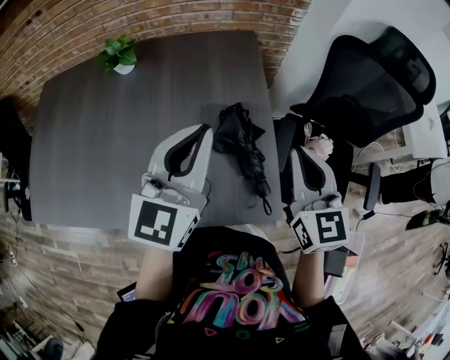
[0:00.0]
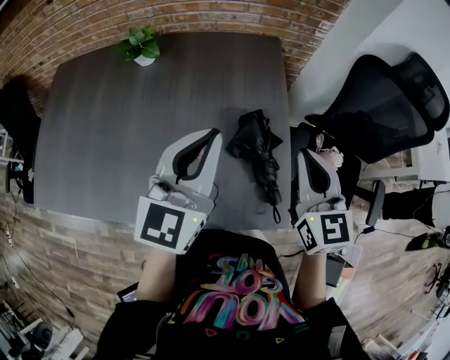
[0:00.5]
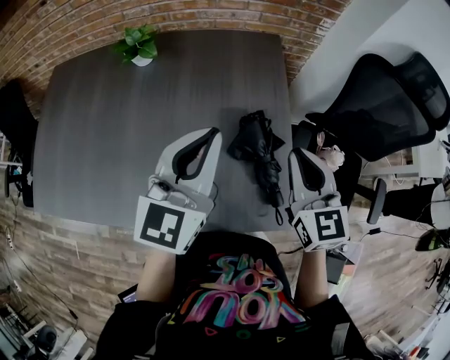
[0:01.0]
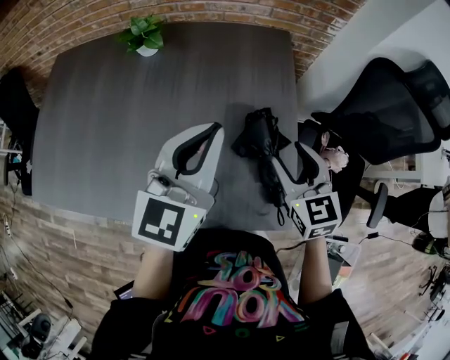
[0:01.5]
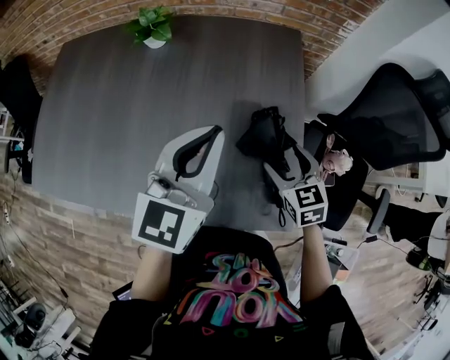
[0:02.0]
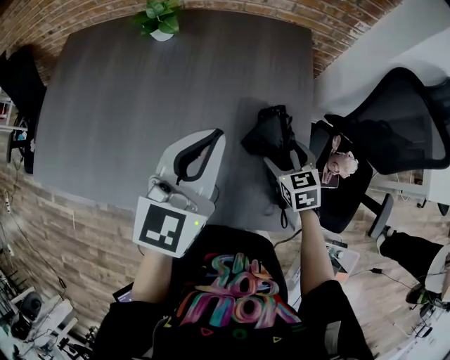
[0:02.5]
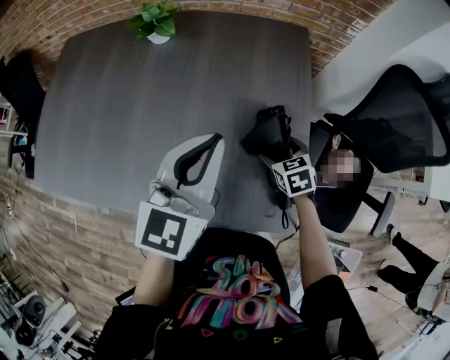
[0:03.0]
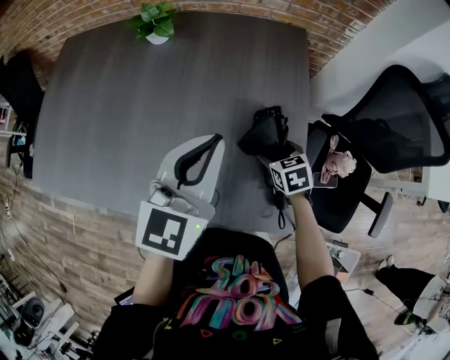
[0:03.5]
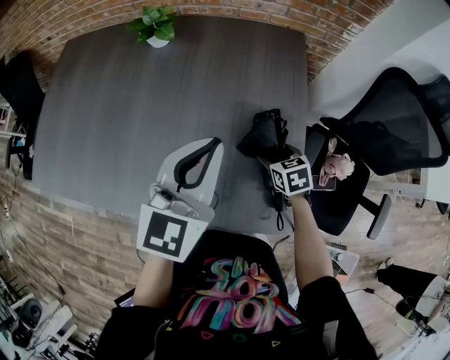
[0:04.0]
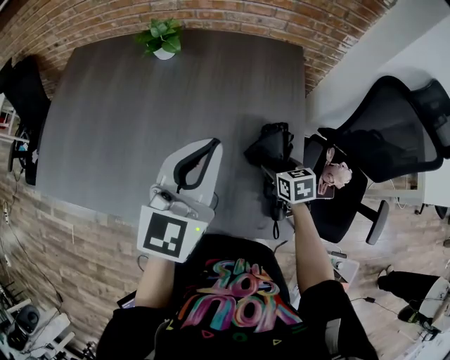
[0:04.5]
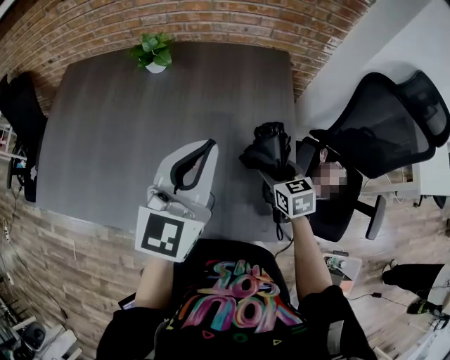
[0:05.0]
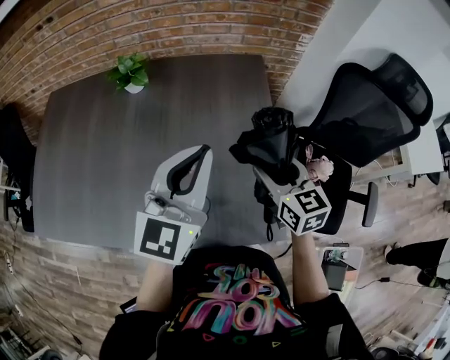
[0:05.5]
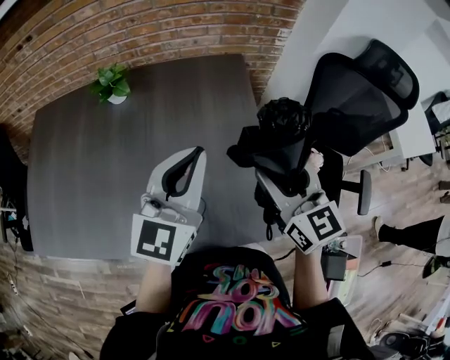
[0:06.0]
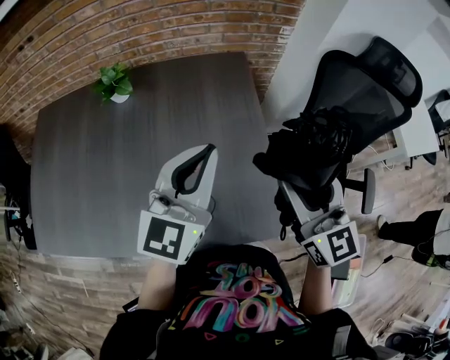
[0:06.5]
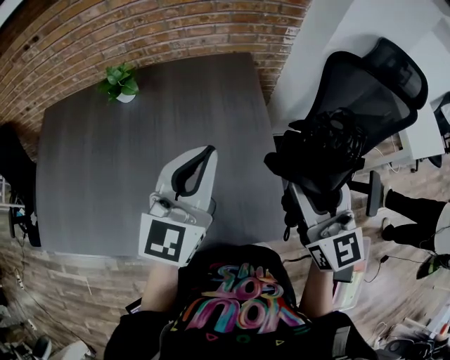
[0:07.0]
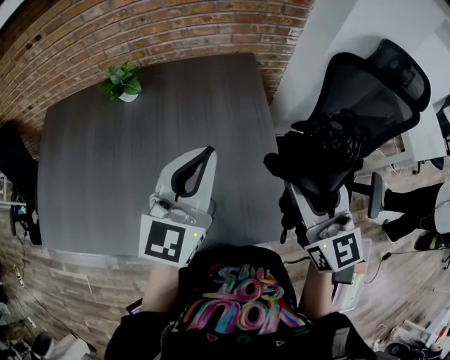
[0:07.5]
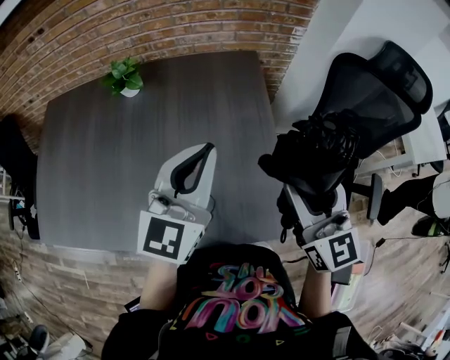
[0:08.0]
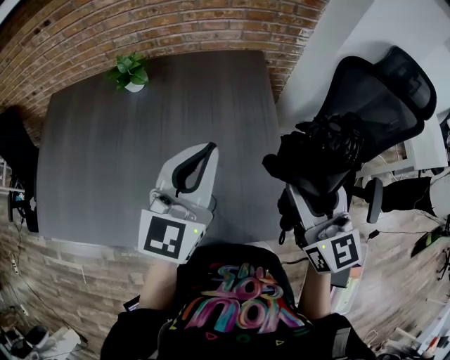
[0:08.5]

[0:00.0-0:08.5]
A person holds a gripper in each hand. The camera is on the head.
0:00.0 to 0:02.0: The right gripper goes about 20 cm downward, turns by approximately 30 degrees, and opens, while the left gripper travels to the left by roughly 5 cm.
0:02.0 to 0:04.0: The right gripper goes some 10 cm downward, and rotates some 20 degrees.
0:04.0 to 0:06.5: The right gripper heads upward, covering about 35 cm, and points its fingers approximately 50 degrees further upward, while the left gripper shifts approximately 10 cm upward and to the right.
0:06.5 to 0:08.5: The grippers make only small movements.

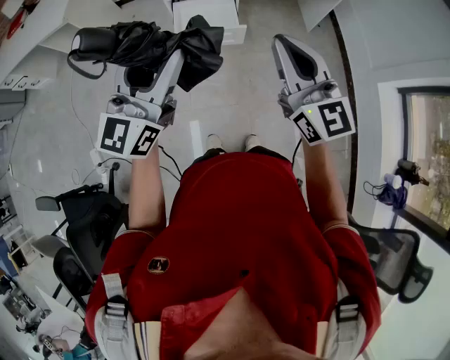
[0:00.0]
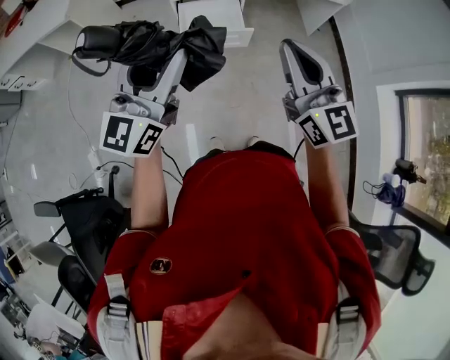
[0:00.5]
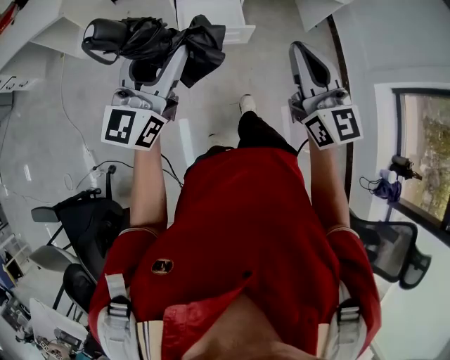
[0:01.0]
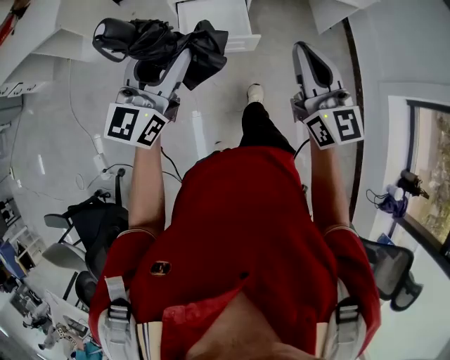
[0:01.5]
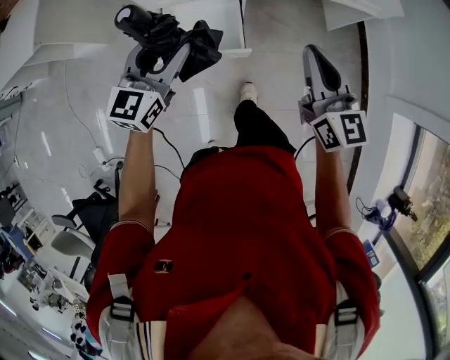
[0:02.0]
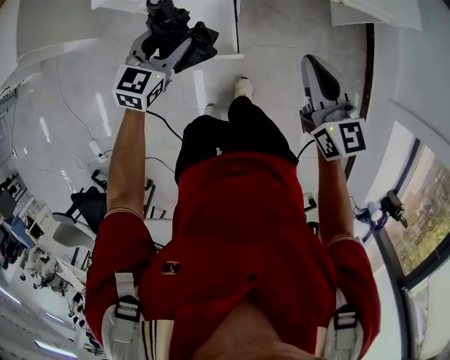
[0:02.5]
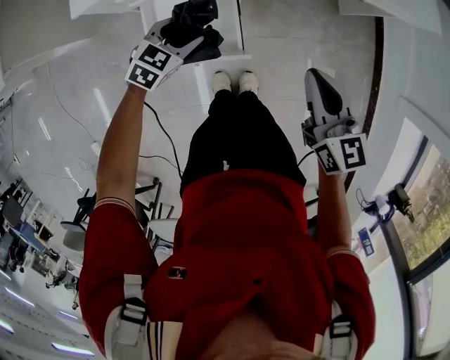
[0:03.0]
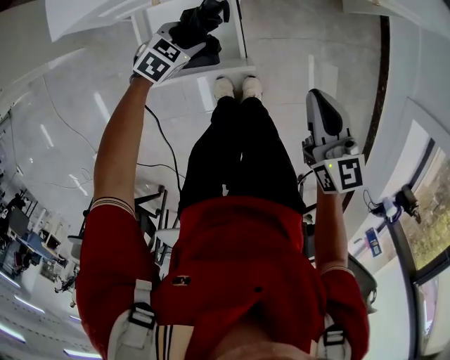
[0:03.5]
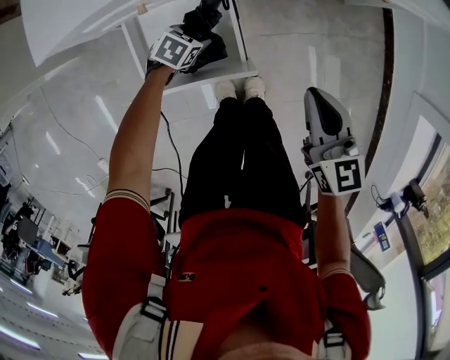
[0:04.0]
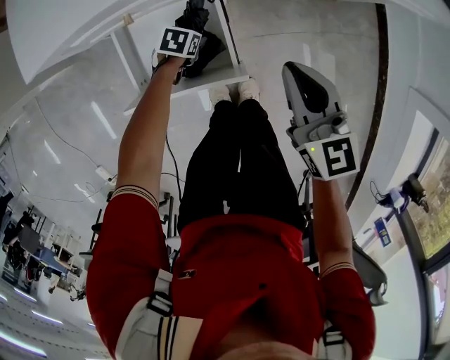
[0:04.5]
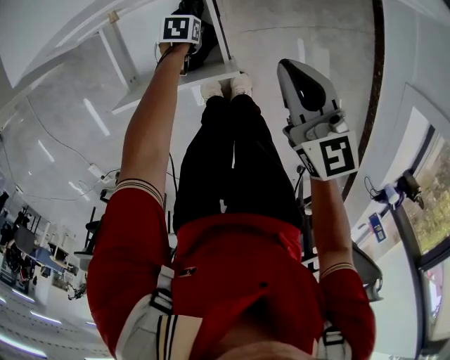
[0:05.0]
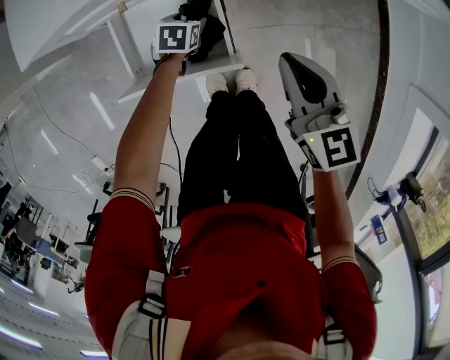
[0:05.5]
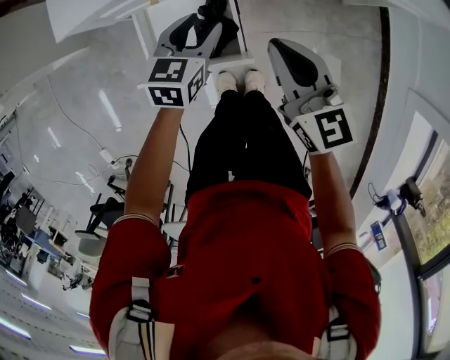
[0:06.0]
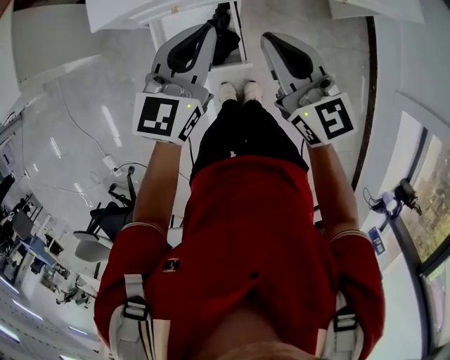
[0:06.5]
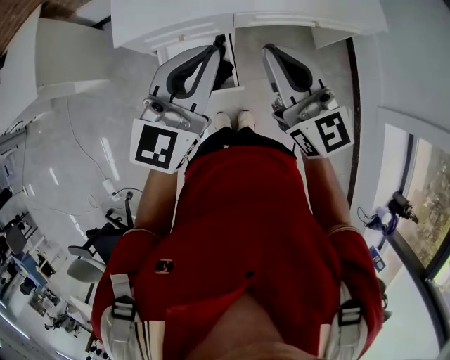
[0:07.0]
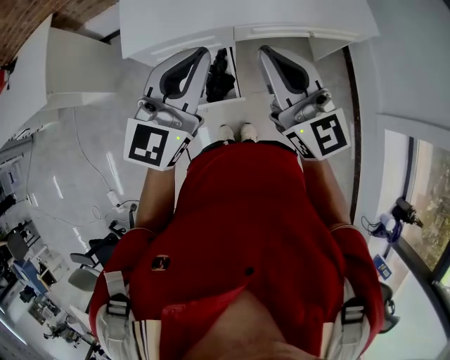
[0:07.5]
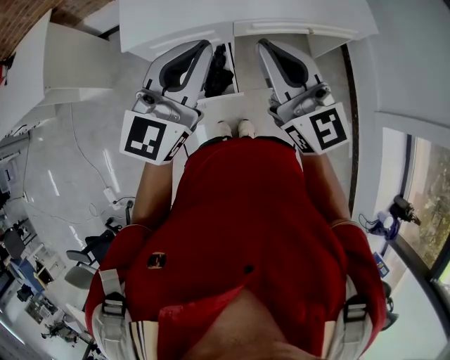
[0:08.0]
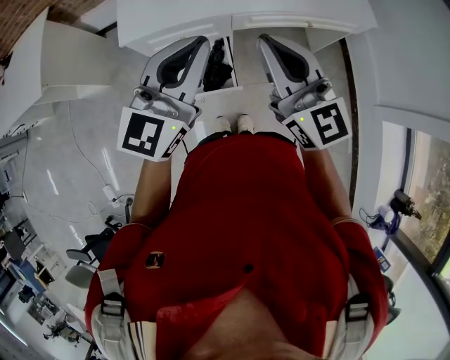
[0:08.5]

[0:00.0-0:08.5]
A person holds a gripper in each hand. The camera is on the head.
0:00.0 to 0:02.0: Both grippers move forward and downward, roughly 40 cm. The left gripper changes its angle by some 20 degrees.
0:02.0 to 0:04.0: The left gripper heads downward, covering roughly 50 cm, and points its fingers some 50 degrees further downward. The right gripper heads downward, covering approximately 25 cm, and changes its angle by roughly 20 degrees.
0:04.0 to 0:06.5: The left gripper travels upward by some 50 cm, angles its fingers upward, by approximately 50 degrees, and closes. The right gripper moves upward, some 20 cm, and turns by about 20 degrees.
0:06.5 to 0:08.5: The left gripper shifts approximately 20 cm upward and backward, and turns by about 20 degrees; the right gripper is displaced upward by roughly 20 cm.

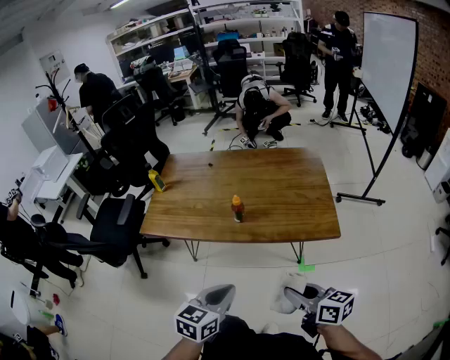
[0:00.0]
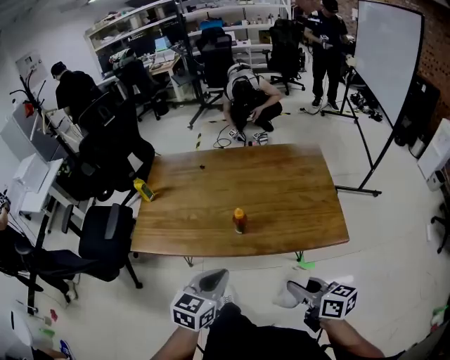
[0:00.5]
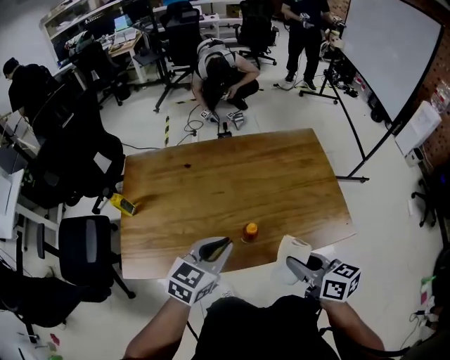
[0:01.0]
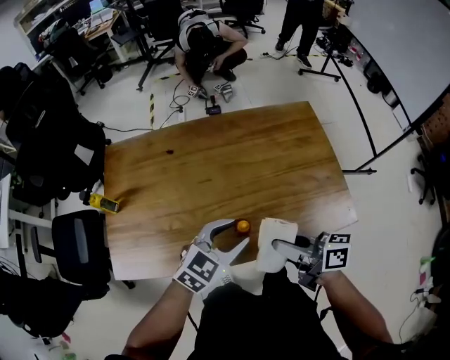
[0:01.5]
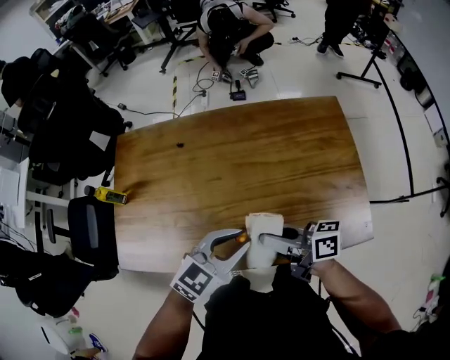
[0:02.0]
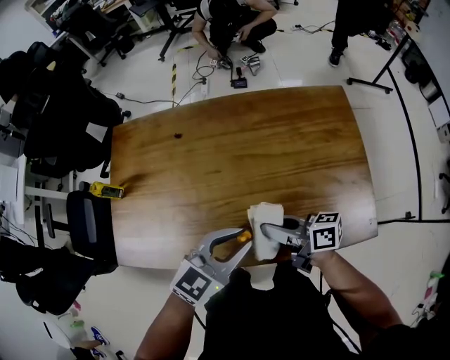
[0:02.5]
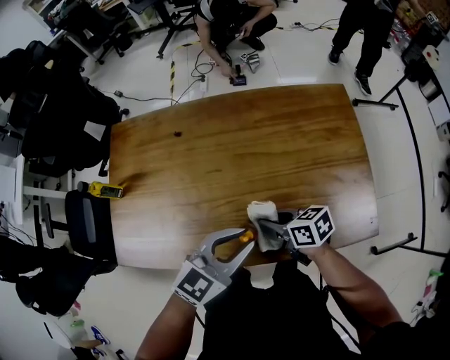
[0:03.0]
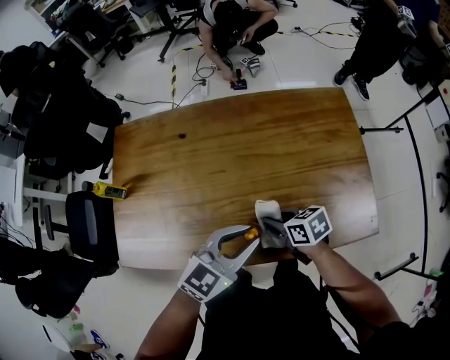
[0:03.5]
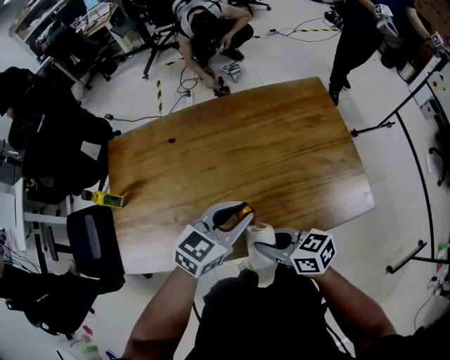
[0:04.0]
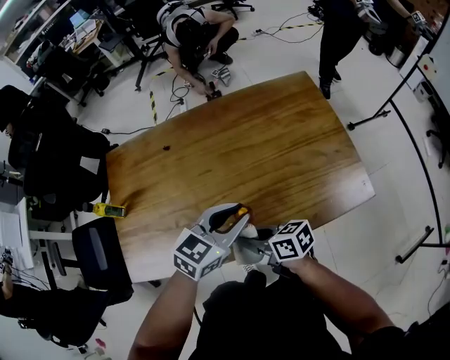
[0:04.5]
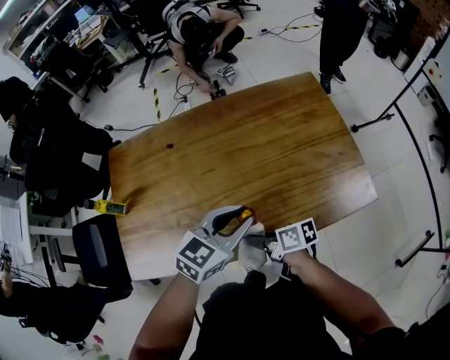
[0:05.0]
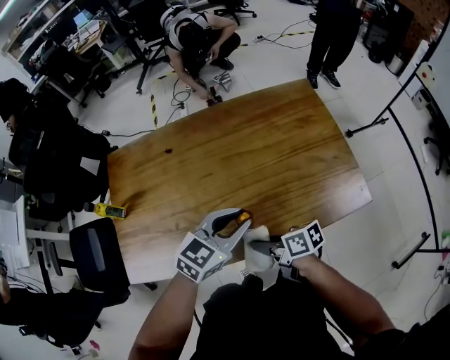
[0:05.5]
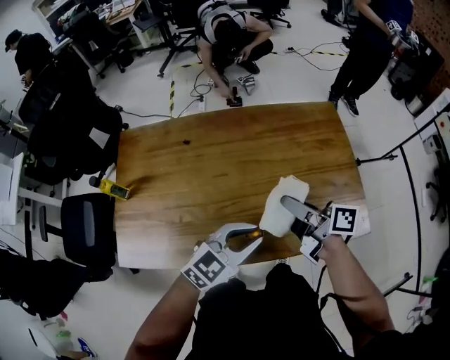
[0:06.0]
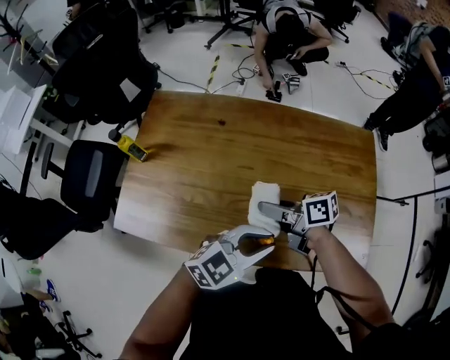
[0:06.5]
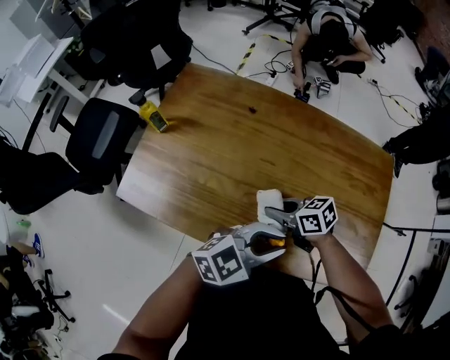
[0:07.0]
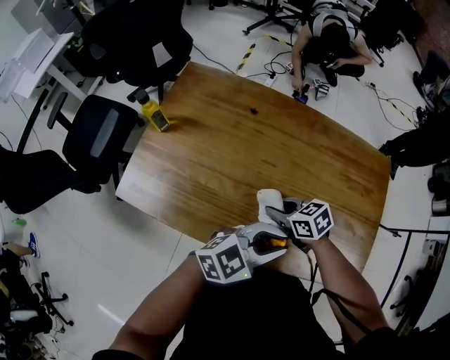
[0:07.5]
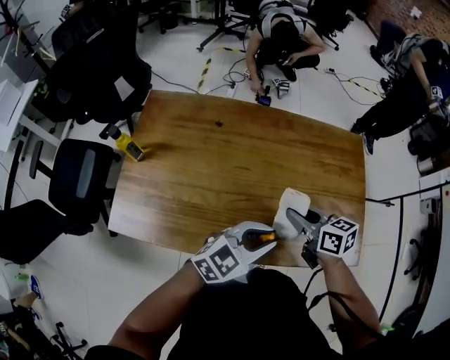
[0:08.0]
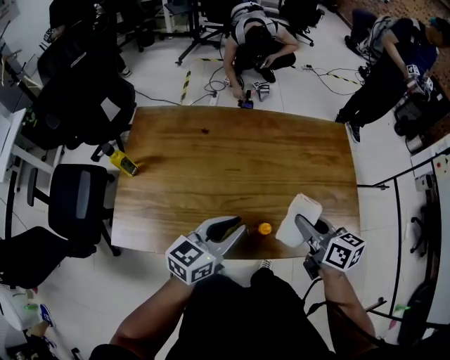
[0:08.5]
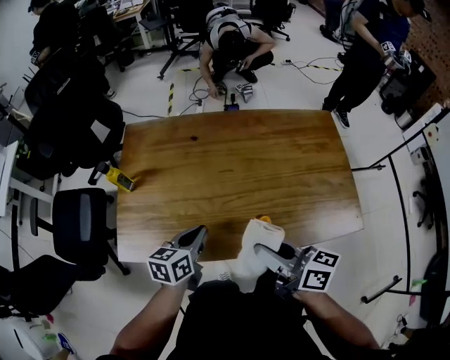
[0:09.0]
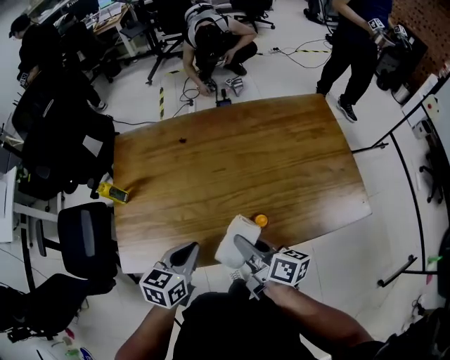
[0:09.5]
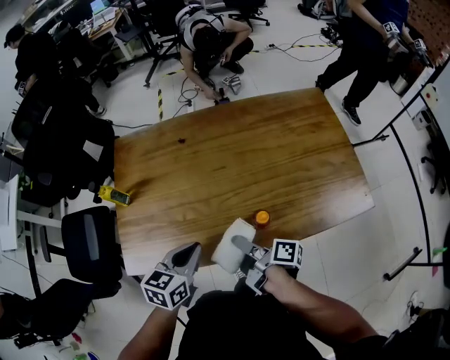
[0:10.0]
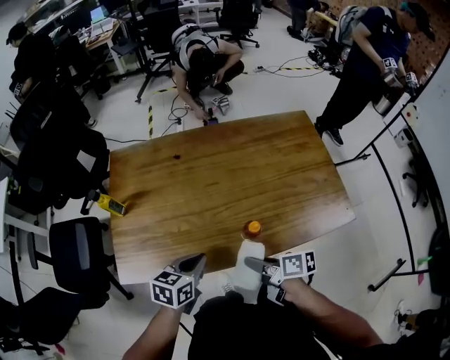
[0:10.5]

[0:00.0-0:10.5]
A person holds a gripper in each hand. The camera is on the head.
0:00.0 to 0:02.0: Both grippers move forward, about 35 cm. The left gripper swivels some 30 degrees, and opens, then closes once more. Meanwhile the right gripper changes its angle by some 30 degrees.
0:02.0 to 0:04.0: The right gripper shifts roughly 10 cm backward and downward, and changes its angle by some 30 degrees.
0:04.0 to 0:06.5: The right gripper swings up and down, approximately 15 cm each way, with 2 reversals, and changes its angle by about 30 degrees.
0:06.5 to 0:08.5: The right gripper moves roughly 15 cm, and changes its angle by approximately 50 degrees, while the left gripper changes place by some 10 cm, and changes its angle by roughly 30 degrees.
0:08.5 to 0:10.5: The right gripper heads backward, to the left and downward, covering some 20 cm, and turns by about 40 degrees, while the left gripper travels to the left, downward and backward by some 15 cm, and turns by some 30 degrees.
